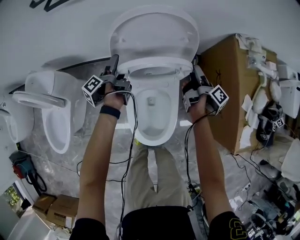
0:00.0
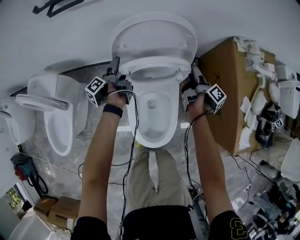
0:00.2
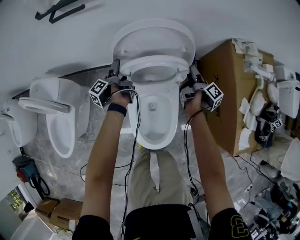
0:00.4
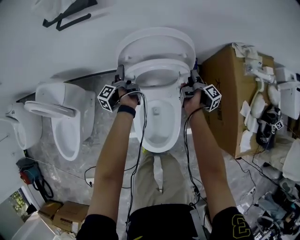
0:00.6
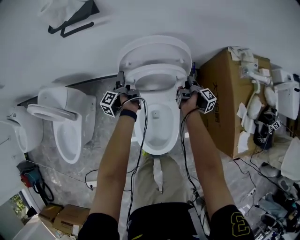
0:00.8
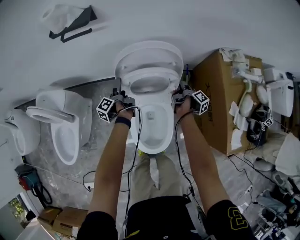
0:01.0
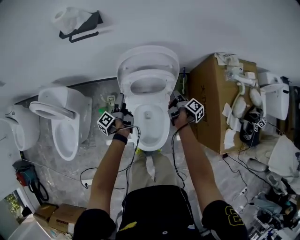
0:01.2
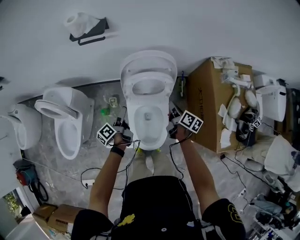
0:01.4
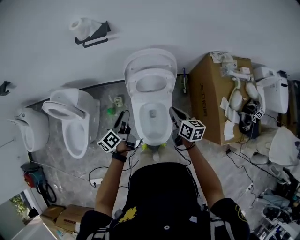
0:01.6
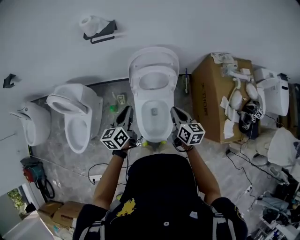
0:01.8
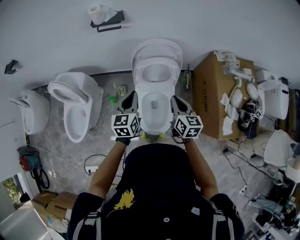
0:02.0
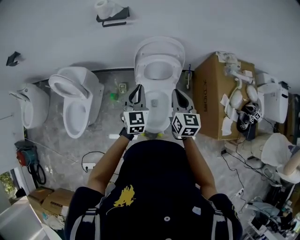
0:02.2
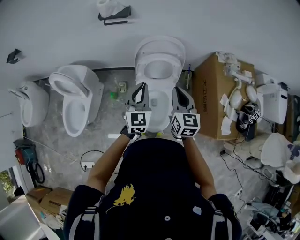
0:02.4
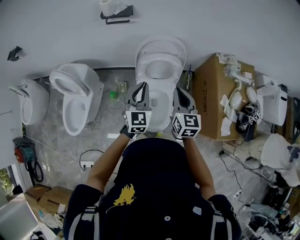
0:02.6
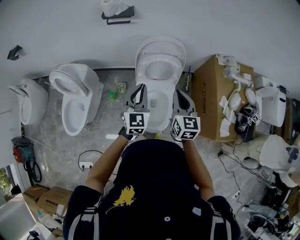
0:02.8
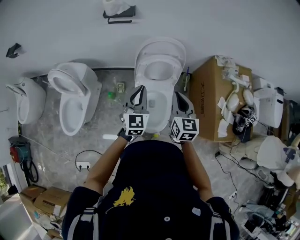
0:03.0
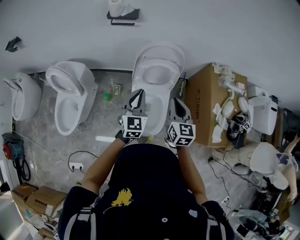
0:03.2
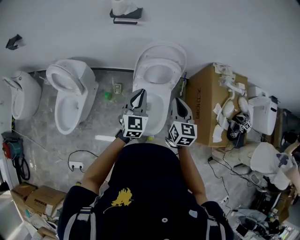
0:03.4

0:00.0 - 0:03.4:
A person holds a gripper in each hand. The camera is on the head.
0:00.0 - 0:01.6: The right gripper shifts about 30 cm upward, backward and to the left, rotates around the line of its fingers by about 60 degrees, counterclockwise from behind, and closes. Meanwhile the left gripper moves upward and backward, approximately 30 cm, twists roughly 40 degrees clockwise, seen from behind, and closes.
0:01.6 - 0:03.4: Both grippers move upward and backward, about 10 cm. The left gripper rotates around the line of its fingers by roughly 70 degrees, clockwise from behind, and closes its fingers; the right gripper rotates roughly 30 degrees.

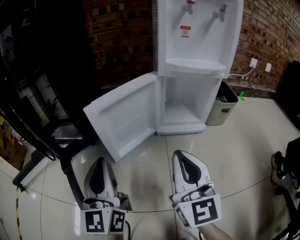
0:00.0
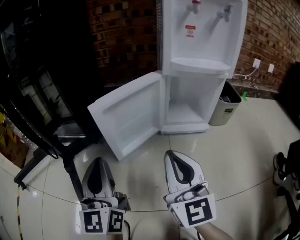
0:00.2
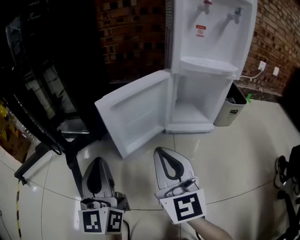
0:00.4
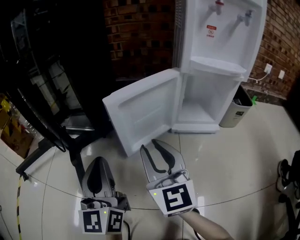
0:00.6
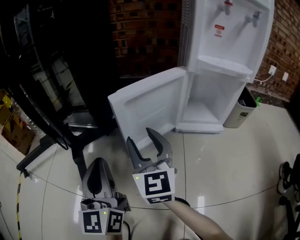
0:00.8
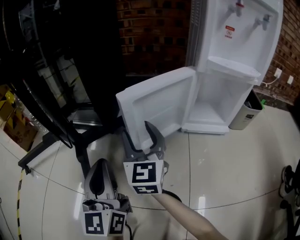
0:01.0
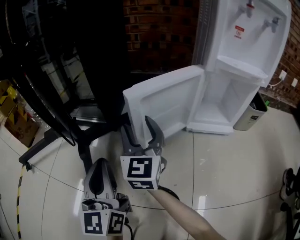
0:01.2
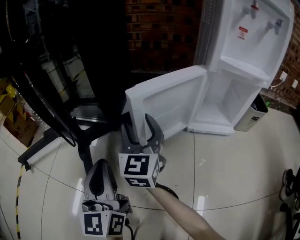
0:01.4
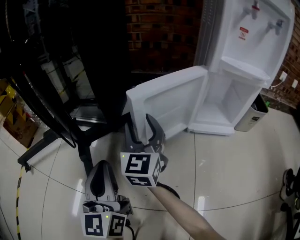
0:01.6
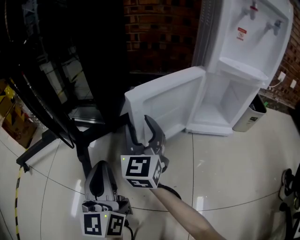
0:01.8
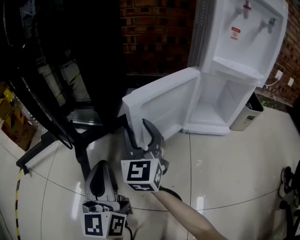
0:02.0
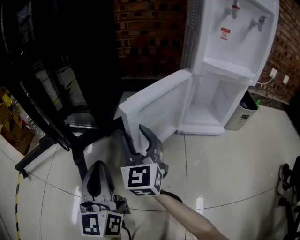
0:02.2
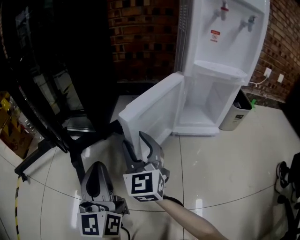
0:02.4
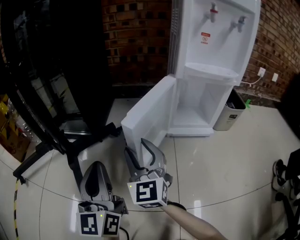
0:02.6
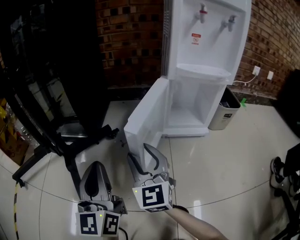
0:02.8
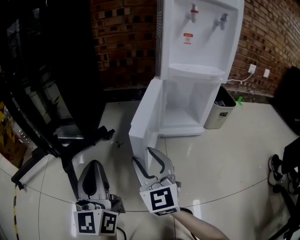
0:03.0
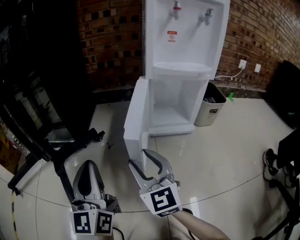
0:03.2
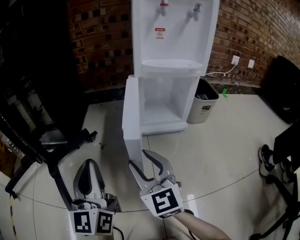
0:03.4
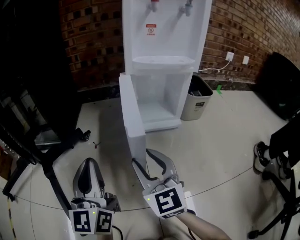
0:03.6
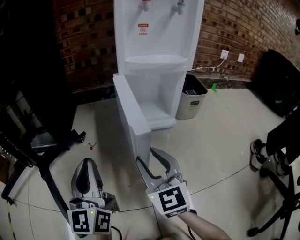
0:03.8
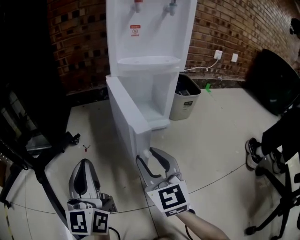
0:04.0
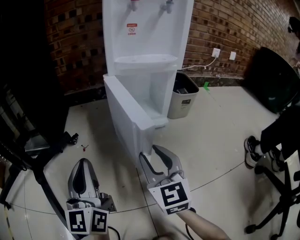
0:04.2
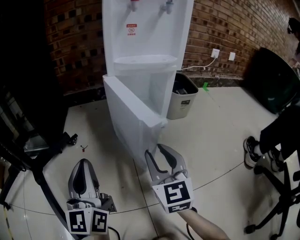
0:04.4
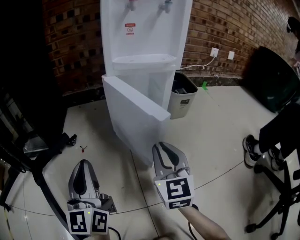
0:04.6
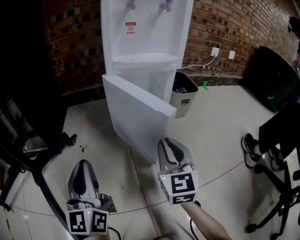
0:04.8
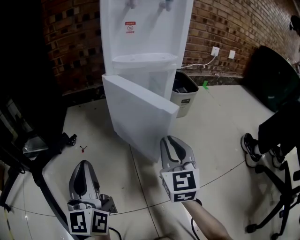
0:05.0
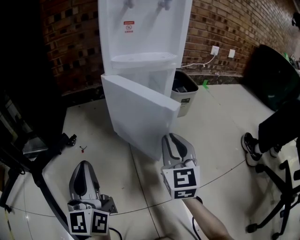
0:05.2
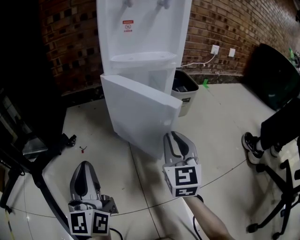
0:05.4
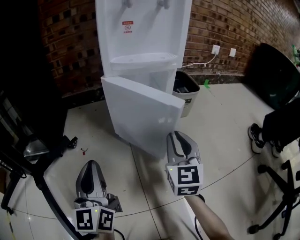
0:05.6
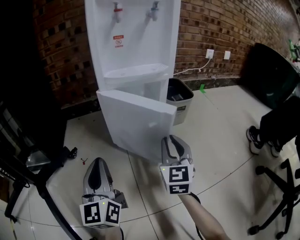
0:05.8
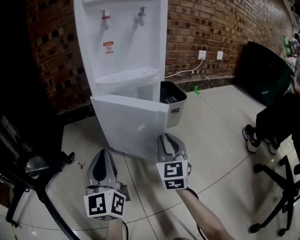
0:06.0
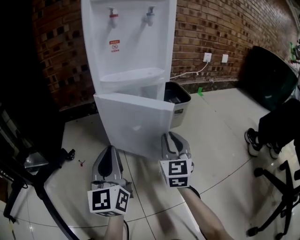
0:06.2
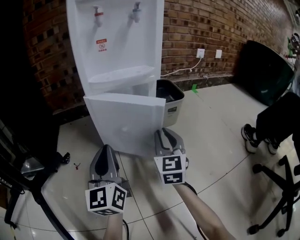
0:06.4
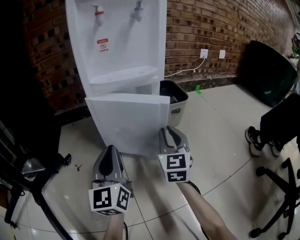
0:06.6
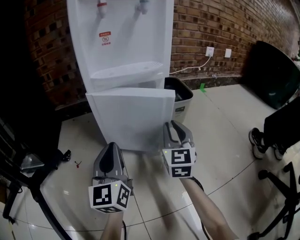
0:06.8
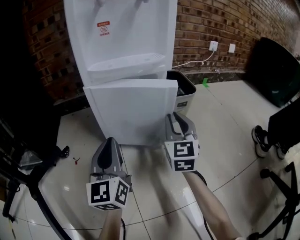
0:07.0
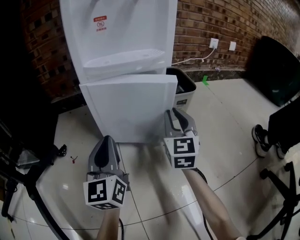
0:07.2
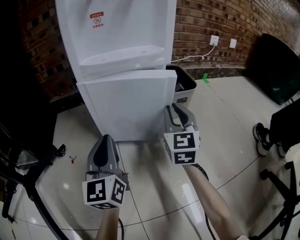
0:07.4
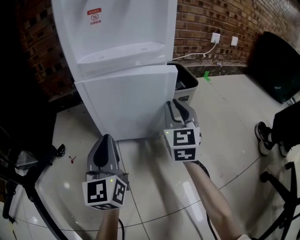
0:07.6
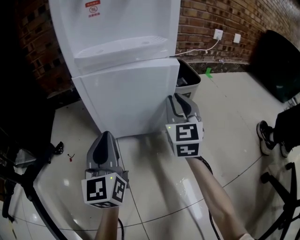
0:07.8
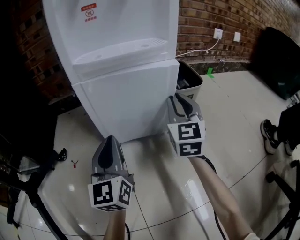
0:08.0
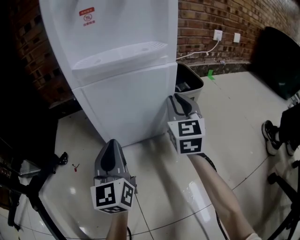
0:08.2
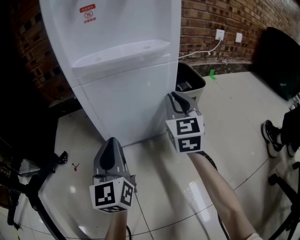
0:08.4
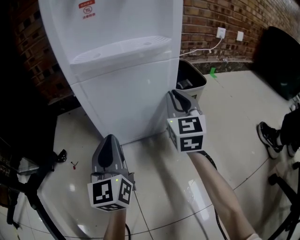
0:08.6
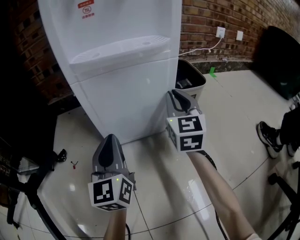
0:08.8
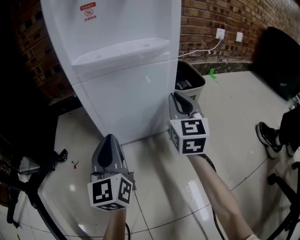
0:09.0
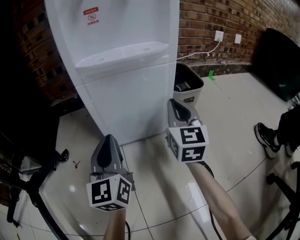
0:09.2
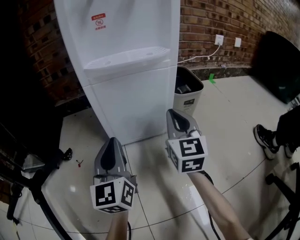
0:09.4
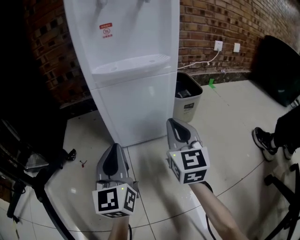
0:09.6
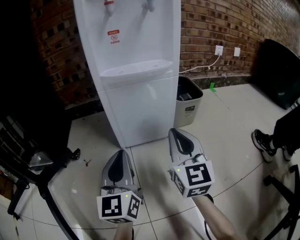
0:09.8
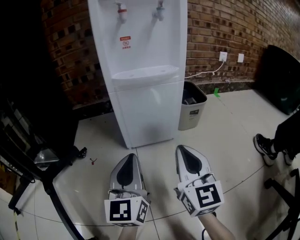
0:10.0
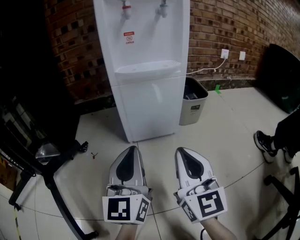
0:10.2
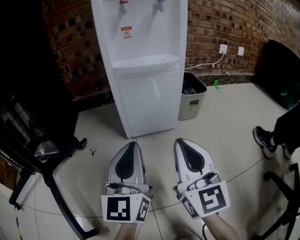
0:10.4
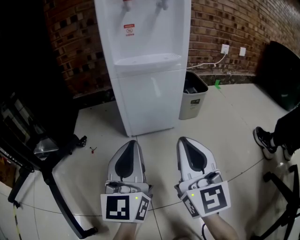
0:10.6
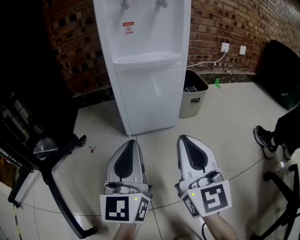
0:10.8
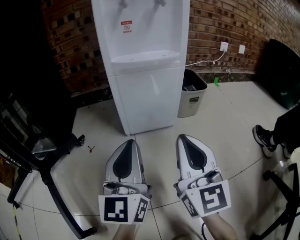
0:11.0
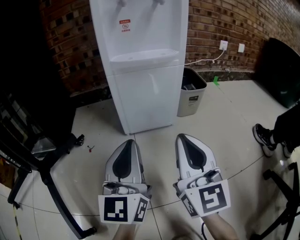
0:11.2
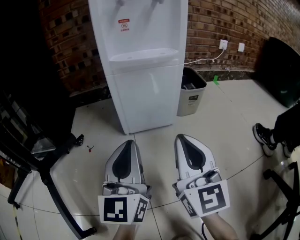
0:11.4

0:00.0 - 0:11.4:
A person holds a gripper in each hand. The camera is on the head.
0:00.0 - 0:01.4: The right gripper travels to the left and forward by roughly 25 cm, and opens; the left gripper goes some 10 cm to the left.
0:01.4 - 0:02.8: The left gripper travels to the right by roughly 5 cm. Meanwhile the right gripper shifts some 15 cm backward and to the right.
0:02.8 - 0:04.2: The left gripper is displaced to the right by some 10 cm. Meanwhile the right gripper is displaced to the right by approximately 20 cm.
0:04.2 - 0:05.6: The right gripper travels to the right and forward by some 10 cm.
0:05.6 - 0:07.2: The two grippers go roughly 15 cm forward and to the right.
0:07.2 - 0:08.6: The left gripper heads forward, covering approximately 5 cm. Meanwhile the right gripper moves forward, roughly 10 cm.
0:08.6 - 0:10.0: The right gripper is displaced backward by approximately 25 cm. The left gripper is displaced backward and upward by roughly 15 cm.
0:10.0 - 0:11.4: The grippers stay close to where they were, moving slightly.

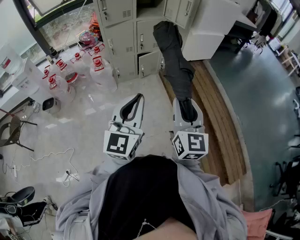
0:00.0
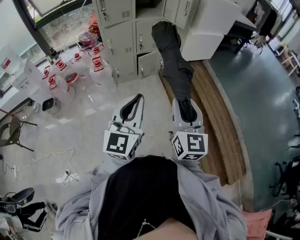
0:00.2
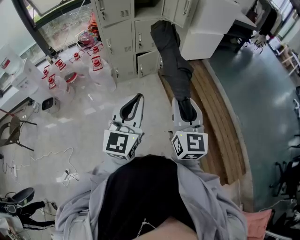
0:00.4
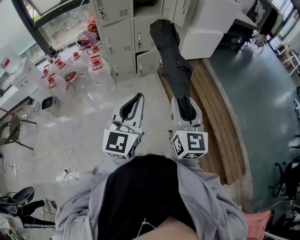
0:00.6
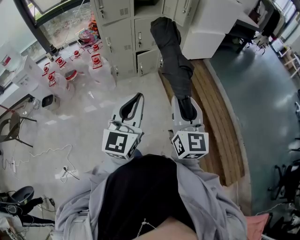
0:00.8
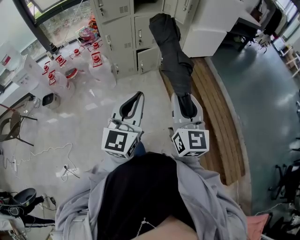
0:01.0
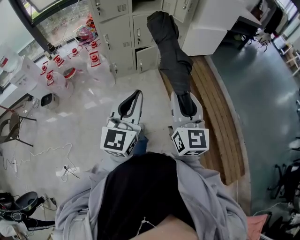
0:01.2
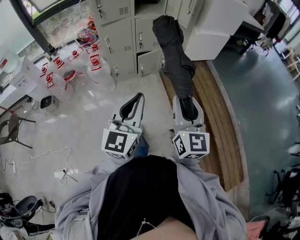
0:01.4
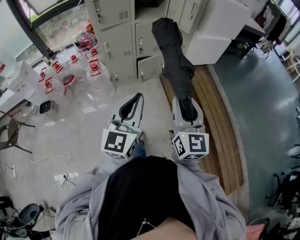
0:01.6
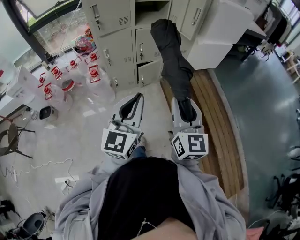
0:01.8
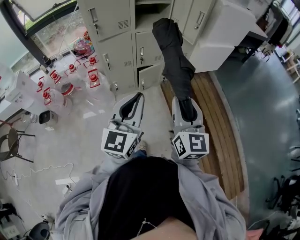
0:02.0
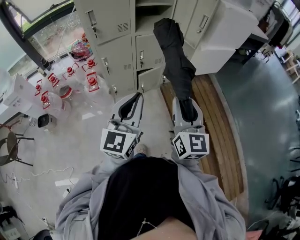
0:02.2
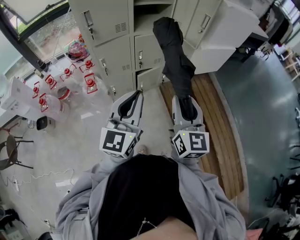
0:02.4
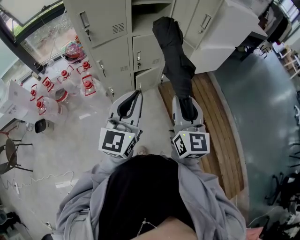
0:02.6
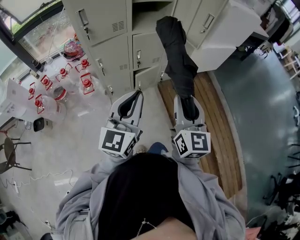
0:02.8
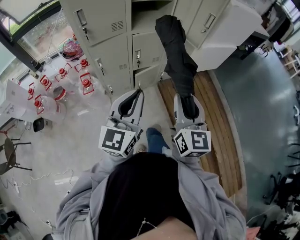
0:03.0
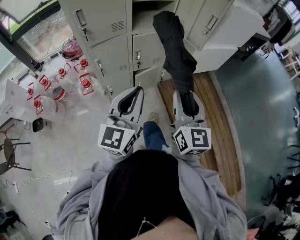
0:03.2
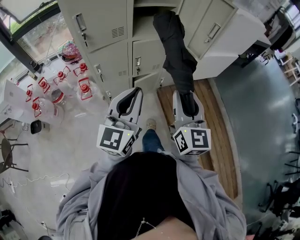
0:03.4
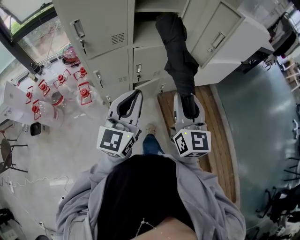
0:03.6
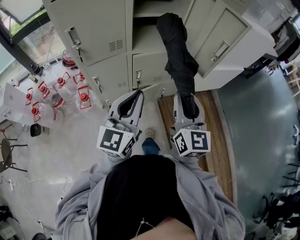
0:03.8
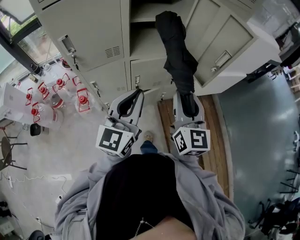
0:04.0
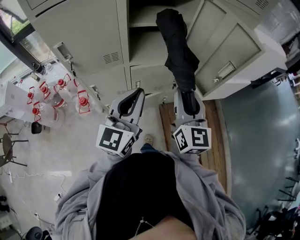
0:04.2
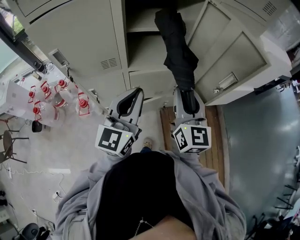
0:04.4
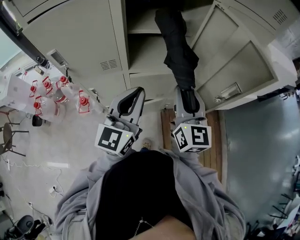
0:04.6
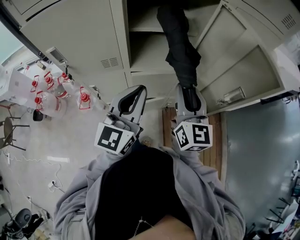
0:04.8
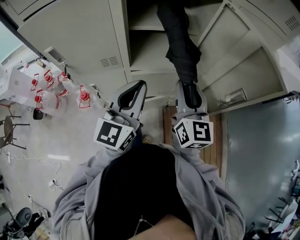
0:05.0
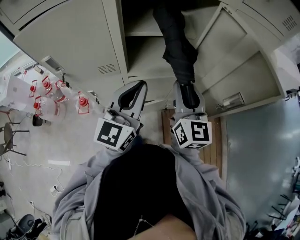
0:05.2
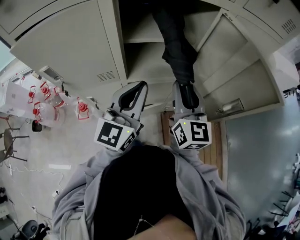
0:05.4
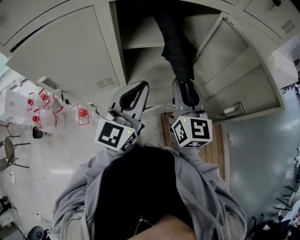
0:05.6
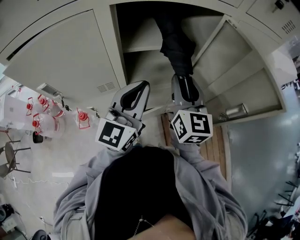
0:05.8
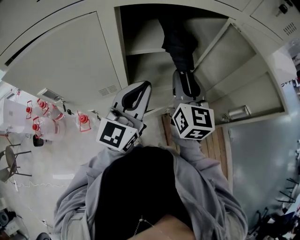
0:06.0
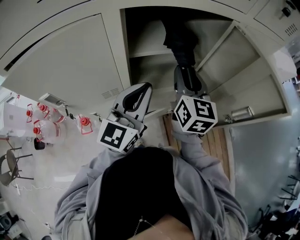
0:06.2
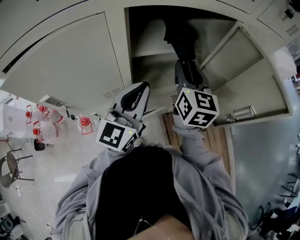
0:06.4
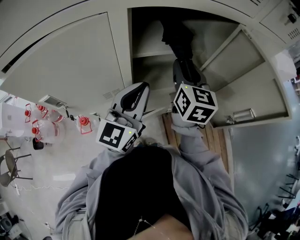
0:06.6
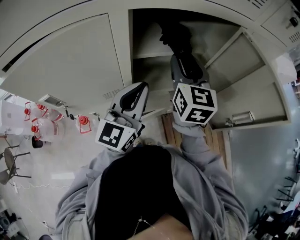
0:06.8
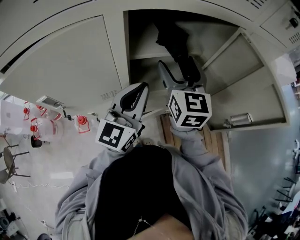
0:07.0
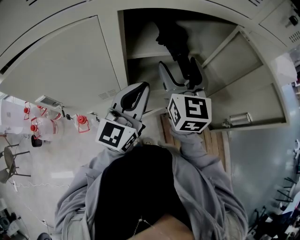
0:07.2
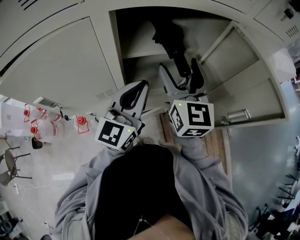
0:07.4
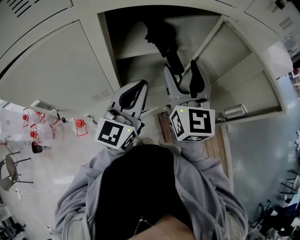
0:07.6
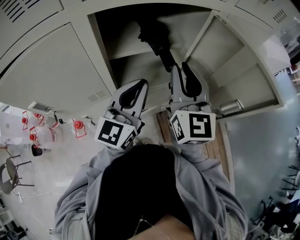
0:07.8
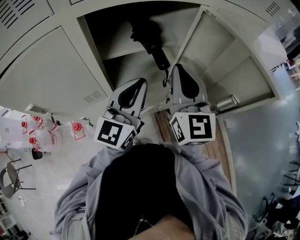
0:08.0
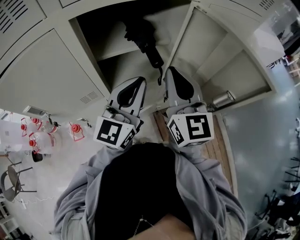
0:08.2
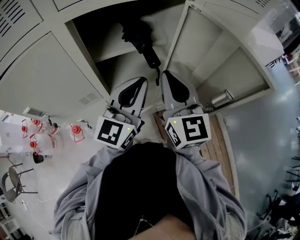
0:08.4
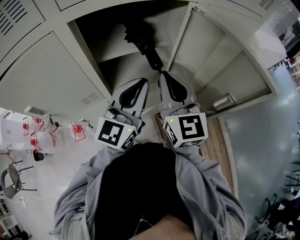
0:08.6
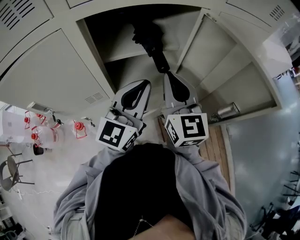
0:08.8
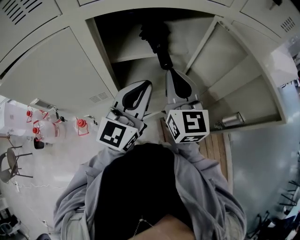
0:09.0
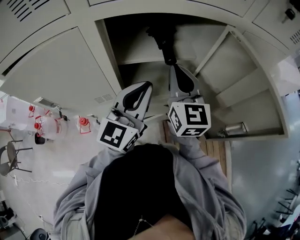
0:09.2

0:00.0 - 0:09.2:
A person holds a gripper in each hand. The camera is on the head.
0:00.0 - 0:01.6: The grippers both shift forward by some 15 cm.
0:01.6 - 0:03.0: The grippers both shift forward by approximately 25 cm.
0:03.0 - 0:04.6: Both grippers move forward, some 35 cm.
0:04.6 - 0:06.2: The two grippers go approximately 15 cm forward.
0:06.2 - 0:07.6: The right gripper ends up approximately 5 cm from where it was, and opens.
0:07.6 - 0:09.2: The right gripper shifts by some 5 cm, and closes its fingers.
